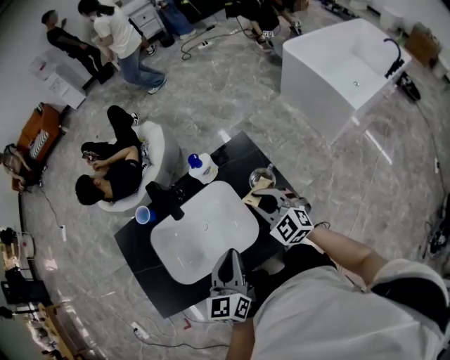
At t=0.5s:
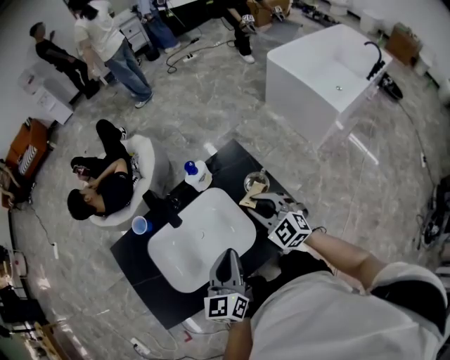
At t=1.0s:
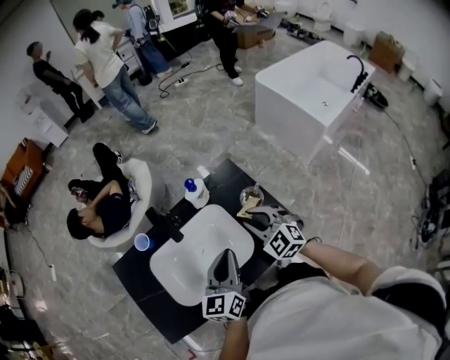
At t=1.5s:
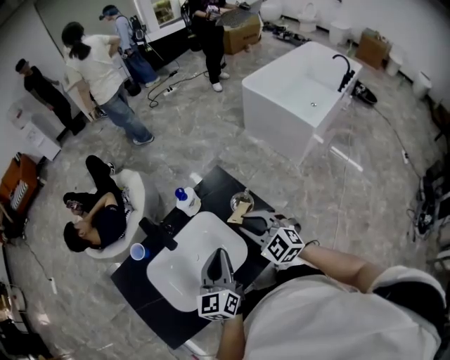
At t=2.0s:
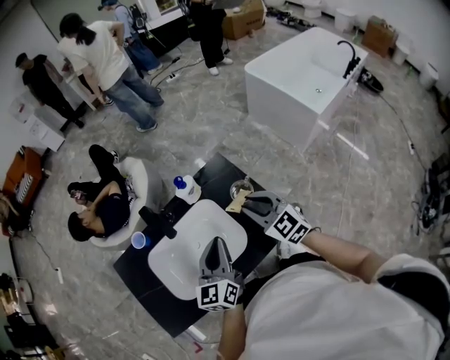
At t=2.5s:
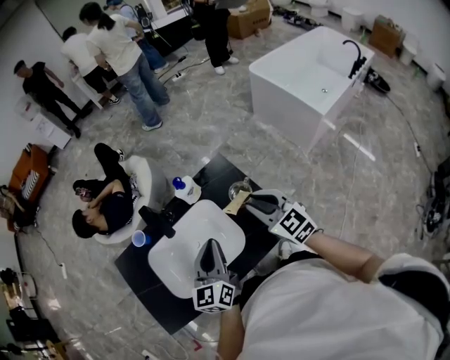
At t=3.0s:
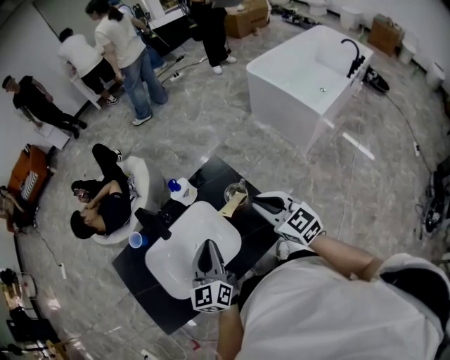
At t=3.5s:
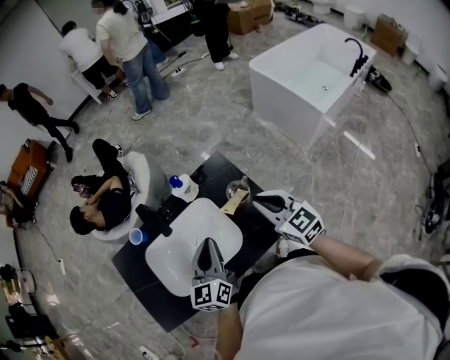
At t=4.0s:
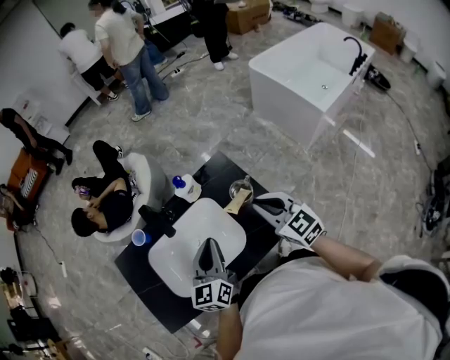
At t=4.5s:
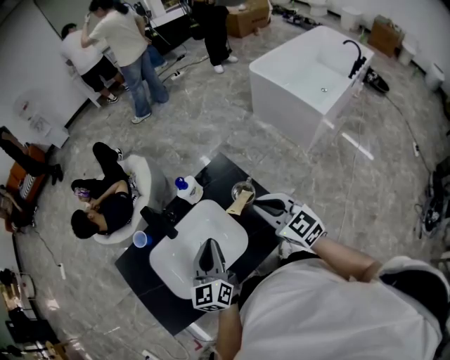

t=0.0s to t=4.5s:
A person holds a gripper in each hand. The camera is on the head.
t=0.0s to t=2.0s: The right gripper moves upward, some 10 cm; the left gripper ends up some 5 cm from where it was.

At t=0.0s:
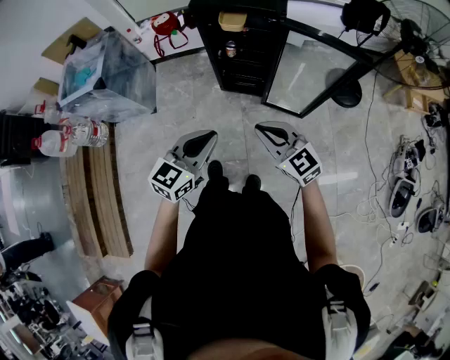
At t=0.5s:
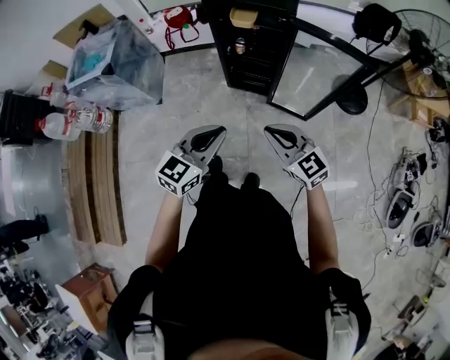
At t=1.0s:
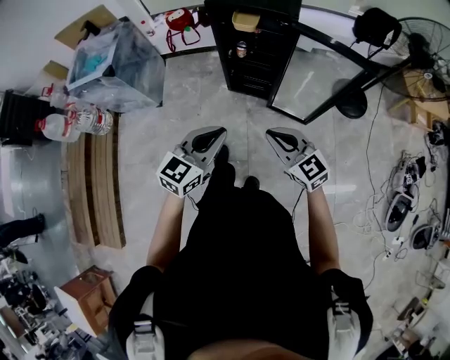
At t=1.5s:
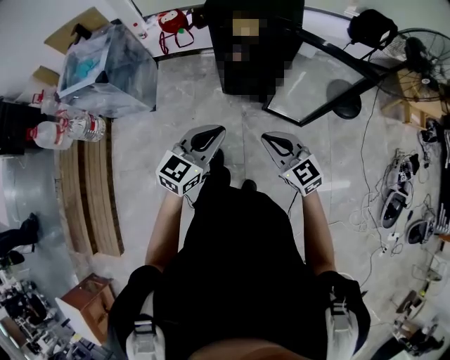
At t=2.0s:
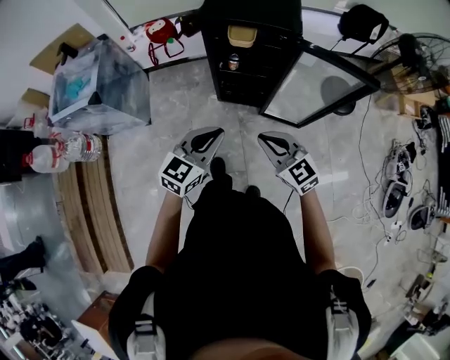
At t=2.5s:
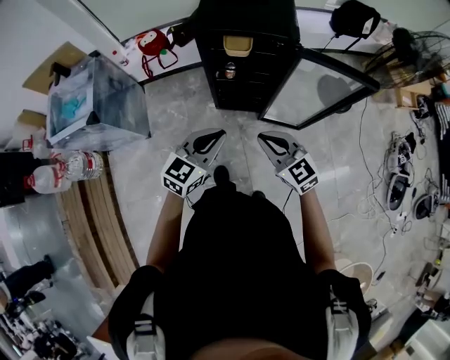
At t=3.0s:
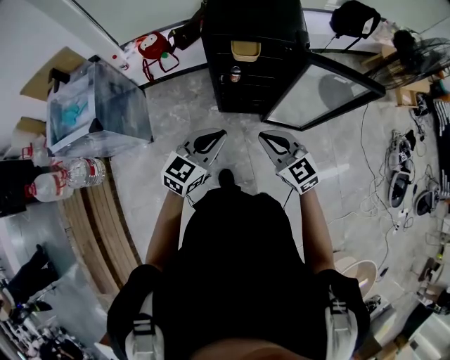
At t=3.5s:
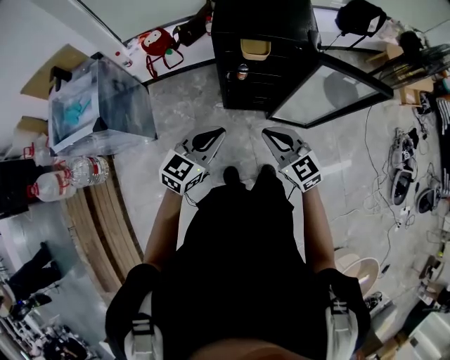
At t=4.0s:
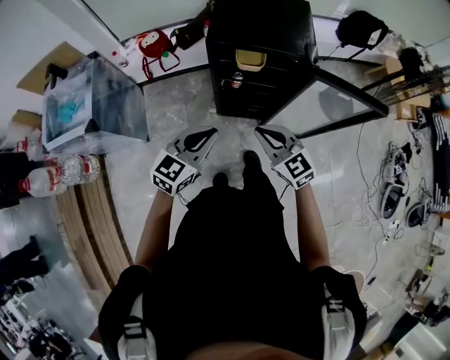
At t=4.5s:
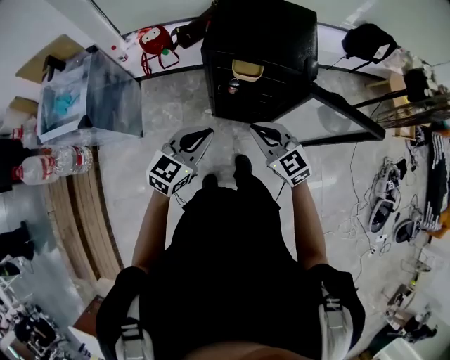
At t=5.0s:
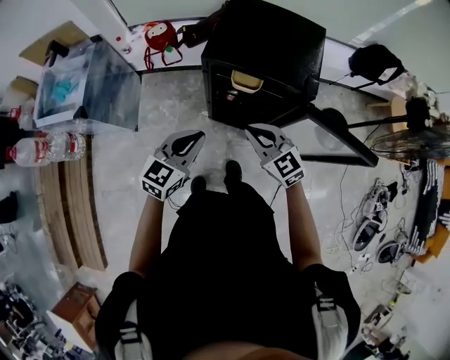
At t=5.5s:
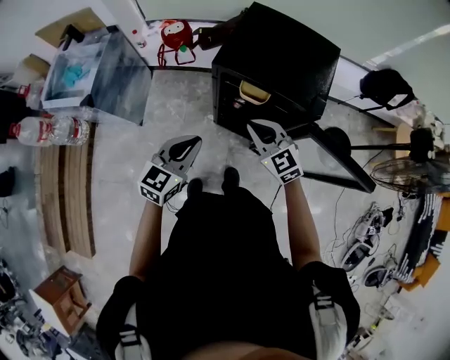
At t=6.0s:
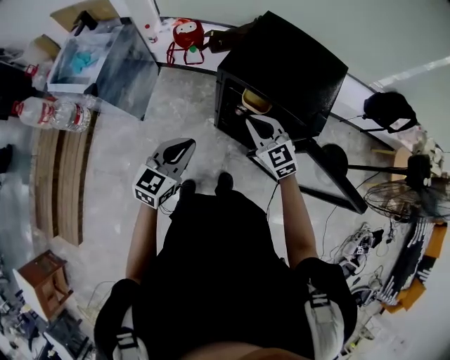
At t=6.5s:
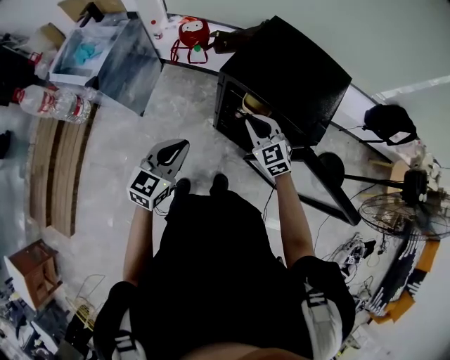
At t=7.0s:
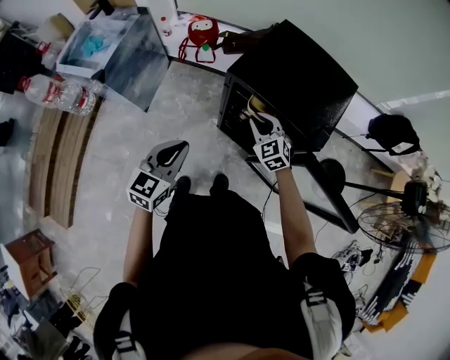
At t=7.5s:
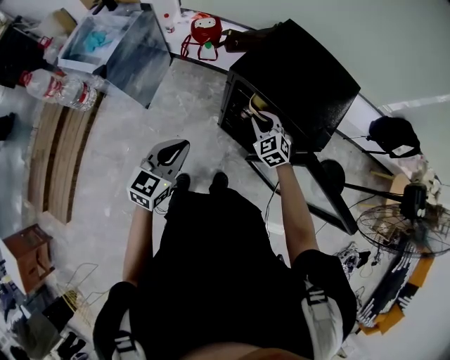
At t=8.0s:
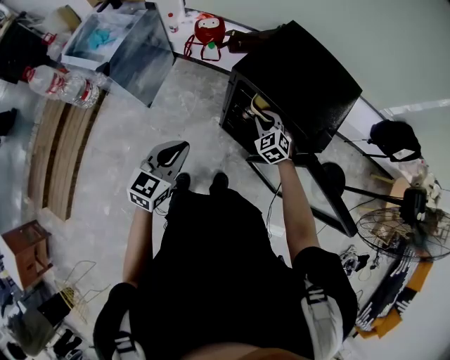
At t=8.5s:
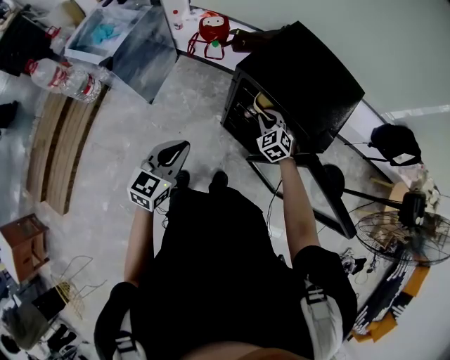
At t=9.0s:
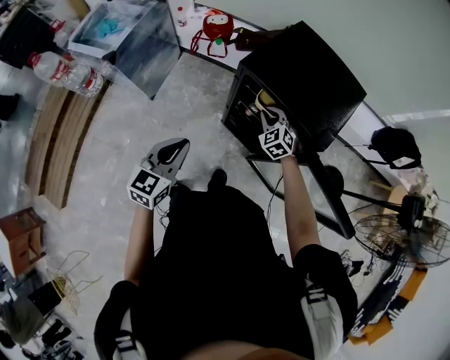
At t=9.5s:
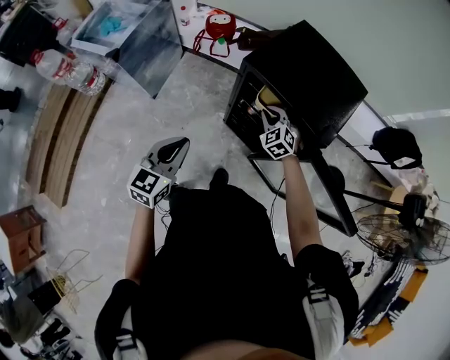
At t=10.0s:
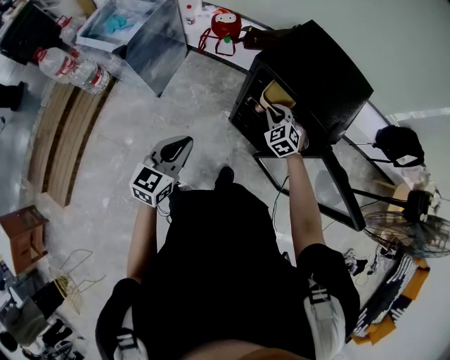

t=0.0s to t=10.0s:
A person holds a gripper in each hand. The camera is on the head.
t=0.0s to t=2.0s: The left gripper is displaced forward by some 10 cm, while the right gripper heads forward and to the left, covering approximately 10 cm.
t=2.0s to t=4.0s: The two grippers go approximately 15 cm forward and to the left.
t=4.0s to t=6.0s: The right gripper is displaced forward by roughly 20 cm, while the left gripper shifts roughly 10 cm forward, and turns by roughly 30 degrees.
t=6.0s to t=8.0s: The right gripper goes approximately 15 cm downward and forward, and swivels some 30 degrees.
t=8.0s to t=10.0s: The left gripper shifts roughly 5 cm backward.

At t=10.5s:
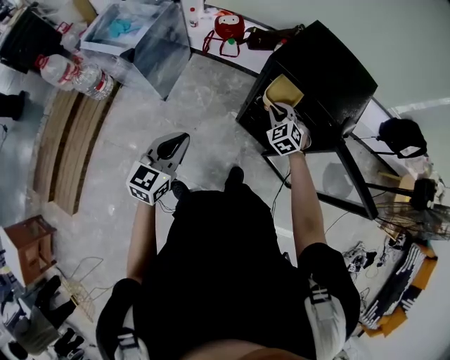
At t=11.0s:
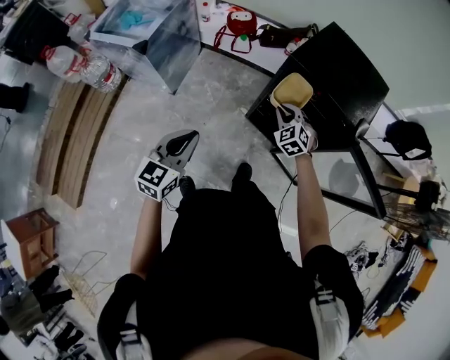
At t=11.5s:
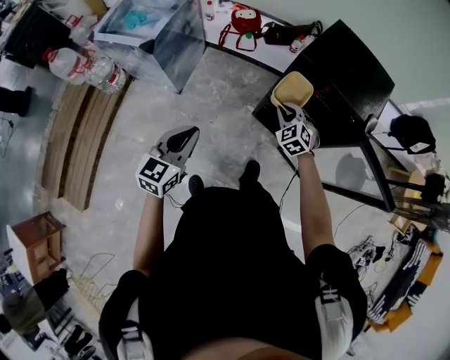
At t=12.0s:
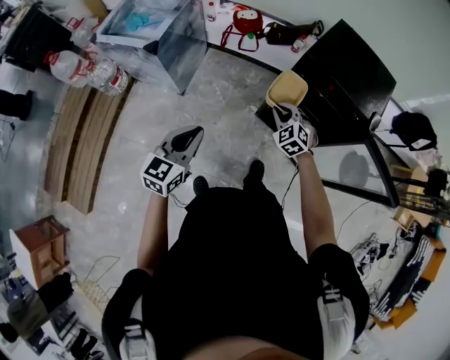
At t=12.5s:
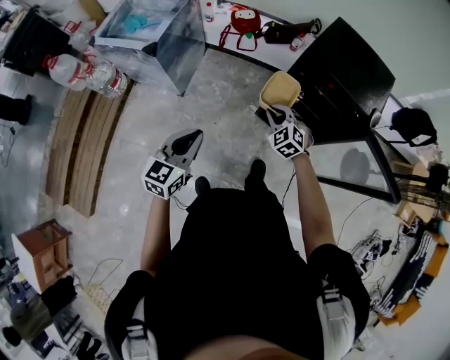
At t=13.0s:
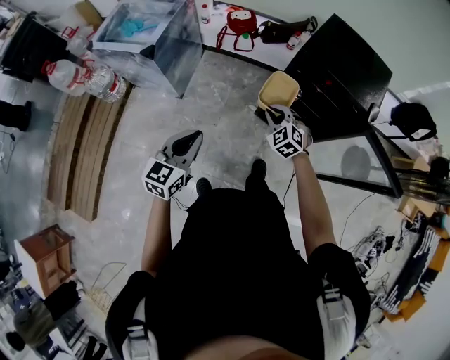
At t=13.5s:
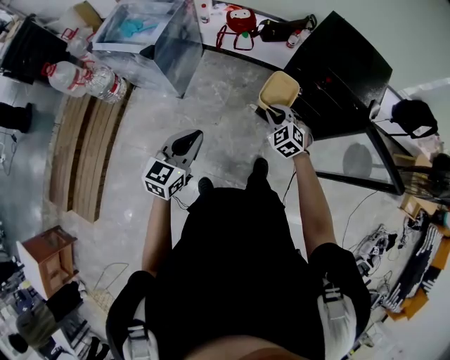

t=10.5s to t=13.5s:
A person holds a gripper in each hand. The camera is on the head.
t=10.5s to t=12.0s: The right gripper moves to the left and backward, approximately 15 cm. The left gripper moves to the left, approximately 10 cm.
t=12.0s to t=13.5s: There are only small adjustments of the grippers.

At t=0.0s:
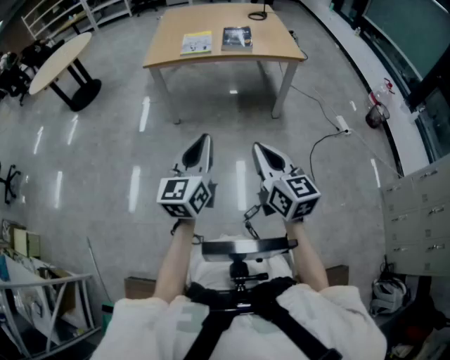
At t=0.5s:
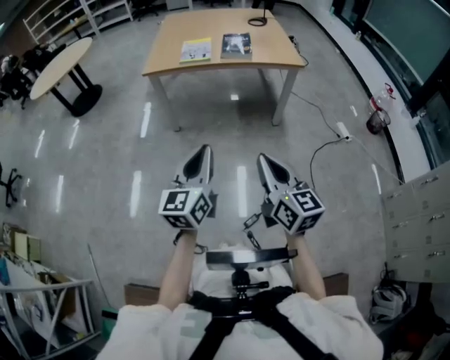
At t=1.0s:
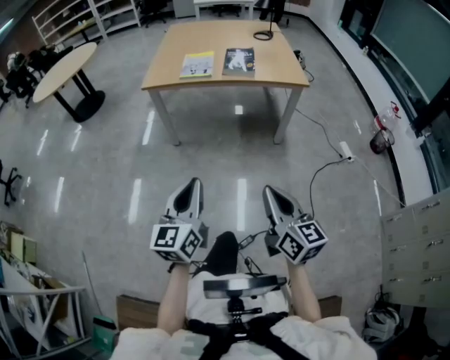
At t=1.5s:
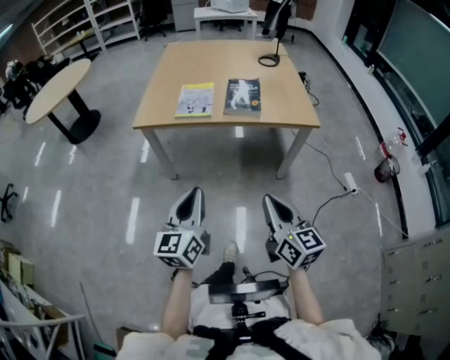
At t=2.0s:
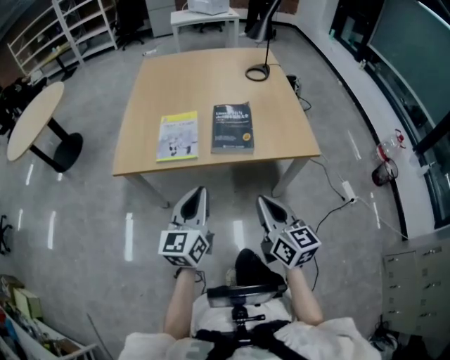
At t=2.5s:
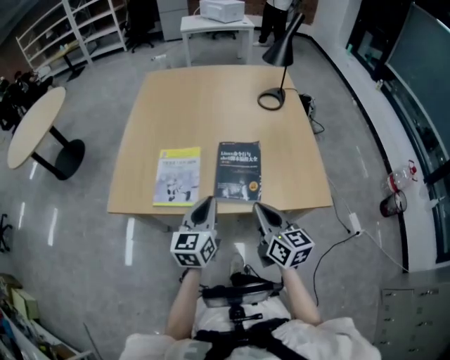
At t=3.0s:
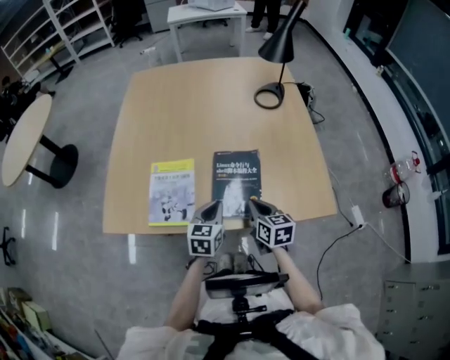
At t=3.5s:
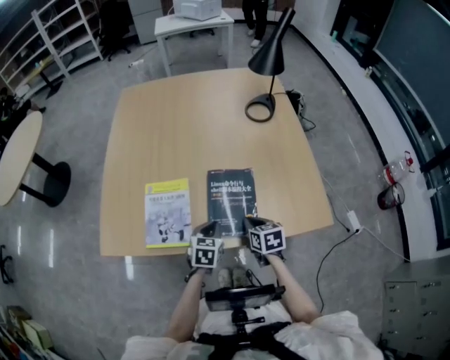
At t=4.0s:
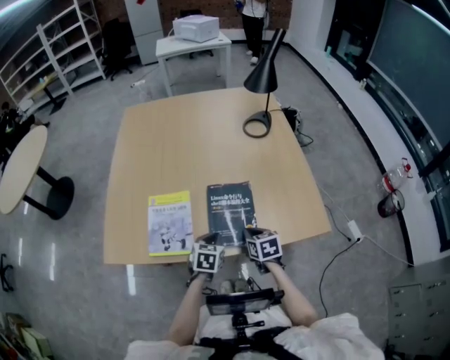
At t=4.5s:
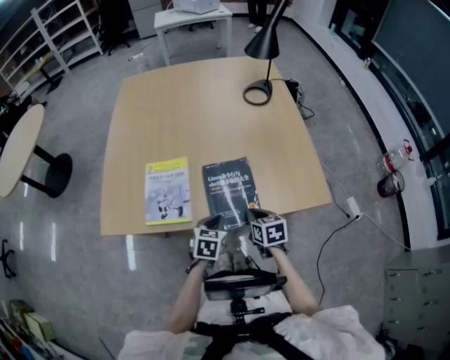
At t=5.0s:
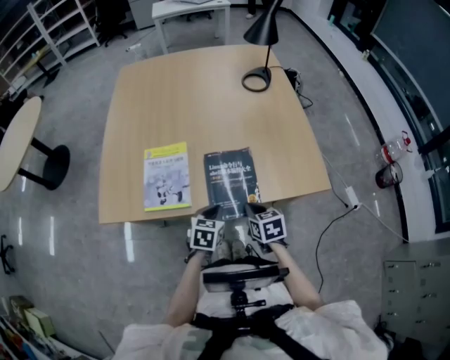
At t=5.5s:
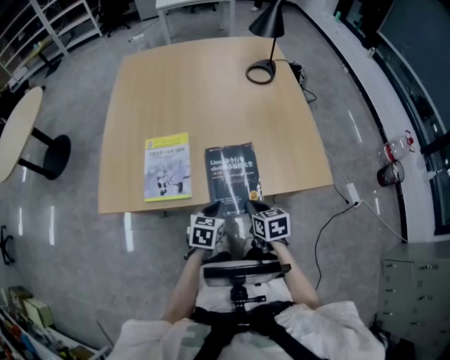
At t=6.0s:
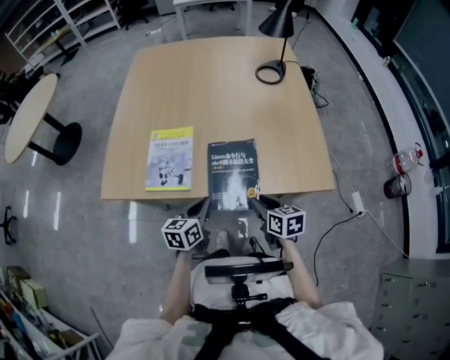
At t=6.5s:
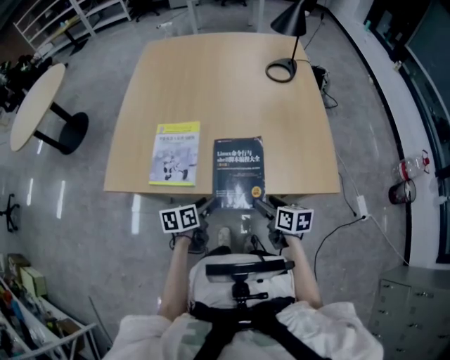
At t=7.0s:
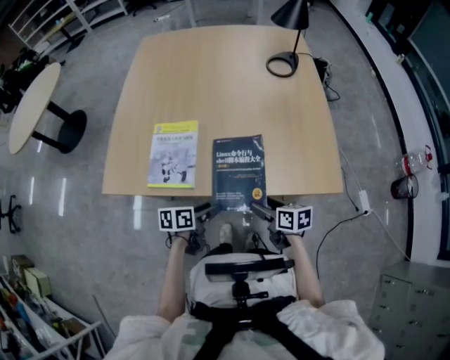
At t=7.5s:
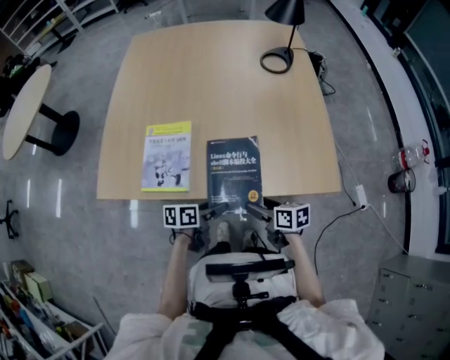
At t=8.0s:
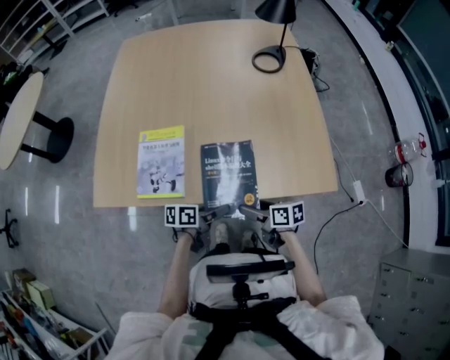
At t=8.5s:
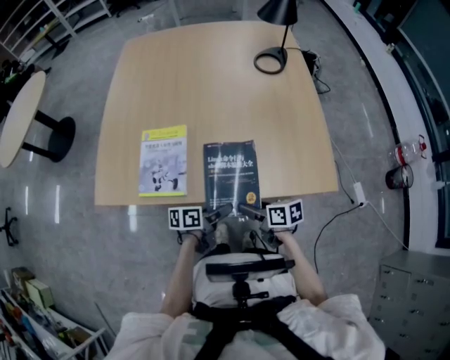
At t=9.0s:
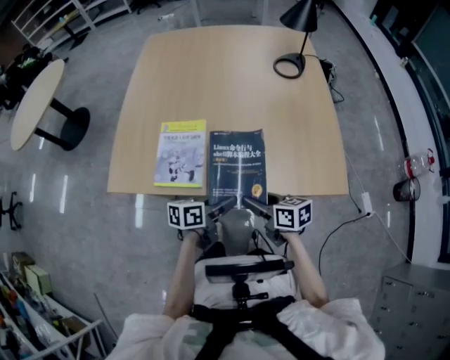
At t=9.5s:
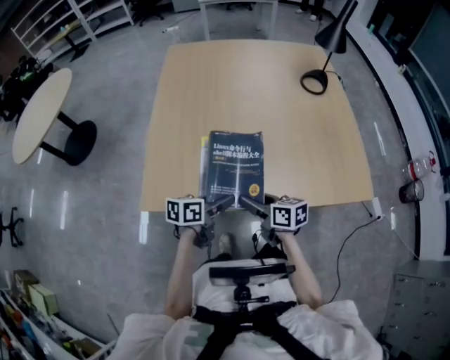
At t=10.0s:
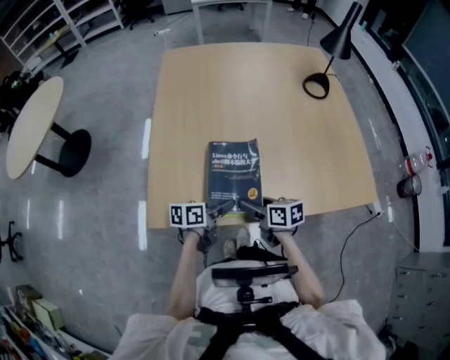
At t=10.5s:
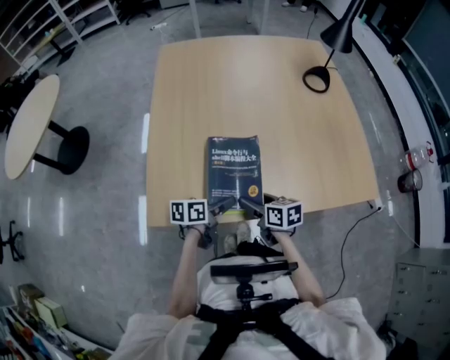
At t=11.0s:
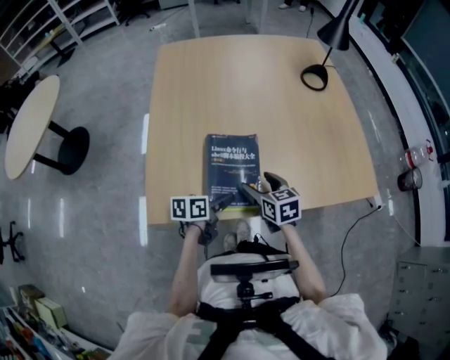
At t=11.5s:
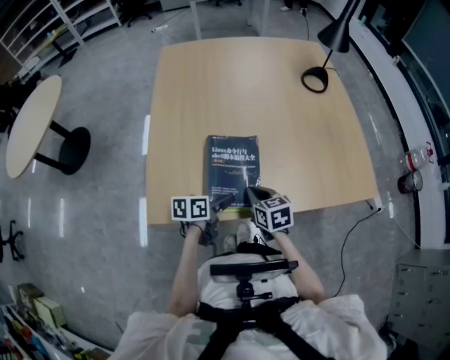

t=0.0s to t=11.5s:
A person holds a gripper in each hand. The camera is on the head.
t=0.0s to t=2.0s: The two grippers travel together, forward, approximately 50 cm.
t=2.0s to t=4.0s: The two grippers go roughly 40 cm forward and downward. The left gripper tips its fingers downward by some 40 degrees. Meanwhile the right gripper tilts its fingers about 40 degrees downward.
t=4.0s to t=6.0s: Both grippers travel together backward, approximately 10 cm. The right gripper opens, while the left gripper changes its angle by about 30 degrees.
t=6.0s to t=7.5s: The left gripper is displaced downward by some 5 cm, turns by roughly 30 degrees, and opens up. Meanwhile the right gripper turns by about 20 degrees, and opens up.
t=7.5s to t=9.5s: The right gripper shifts roughly 25 cm to the left, while the left gripper travels to the left and upward by some 20 cm.
t=9.5s to t=11.5s: The left gripper changes place by approximately 5 cm. The right gripper goes about 5 cm forward, swivels about 30 degrees, and closes its fingers.